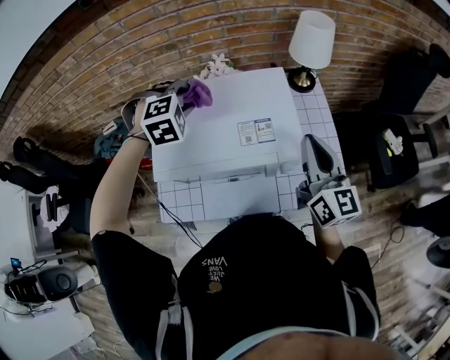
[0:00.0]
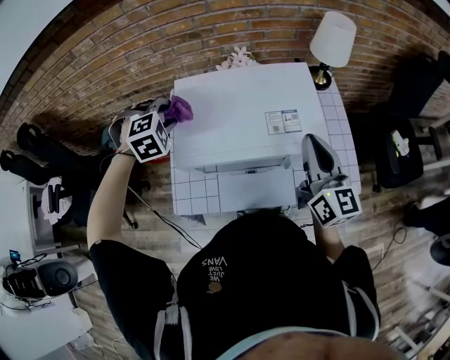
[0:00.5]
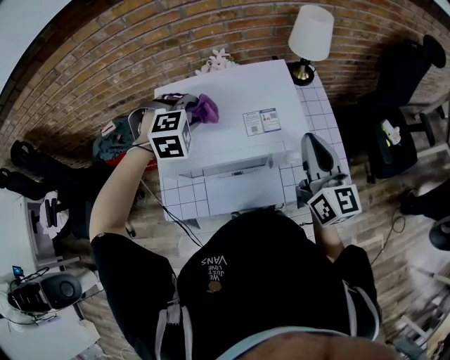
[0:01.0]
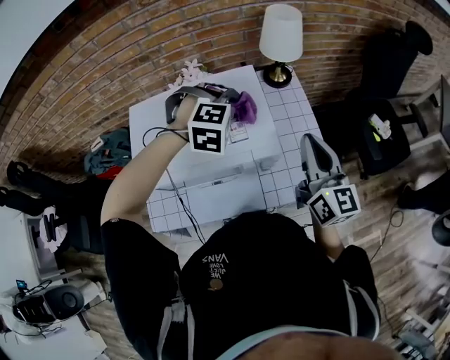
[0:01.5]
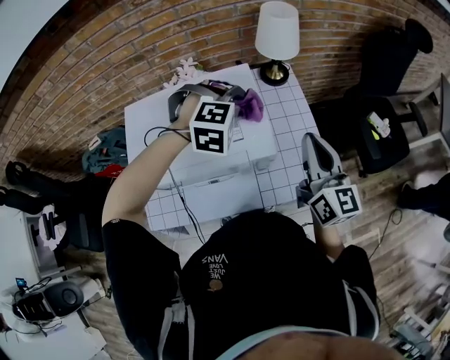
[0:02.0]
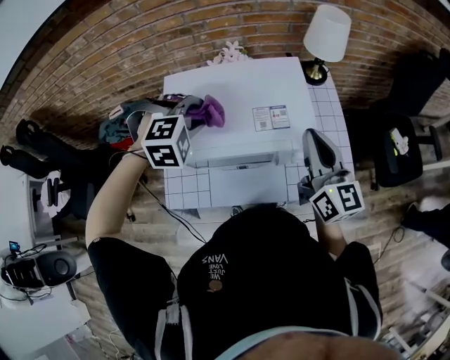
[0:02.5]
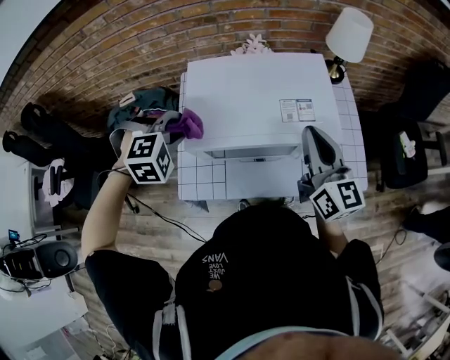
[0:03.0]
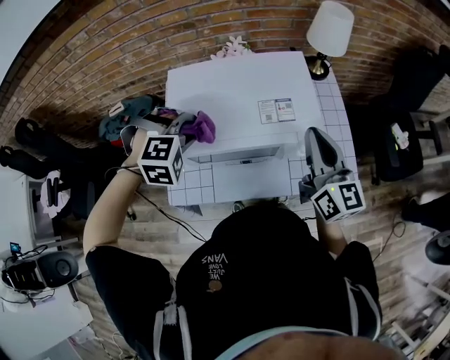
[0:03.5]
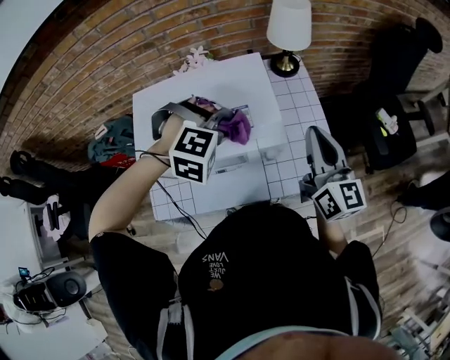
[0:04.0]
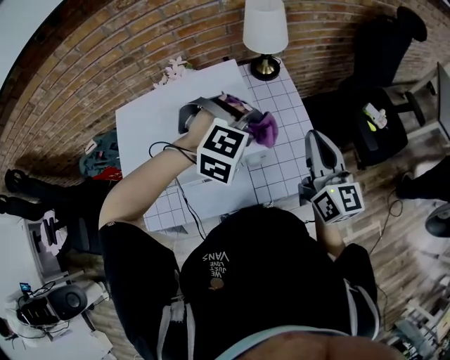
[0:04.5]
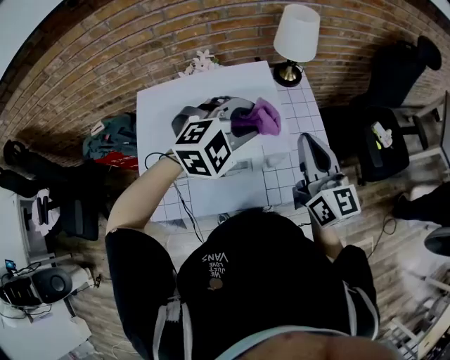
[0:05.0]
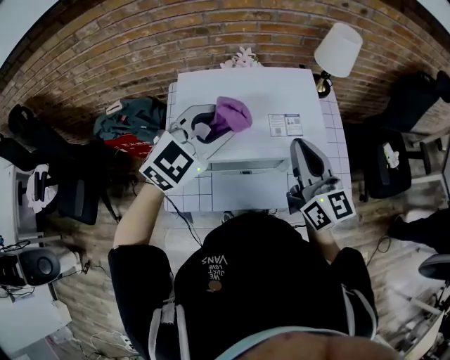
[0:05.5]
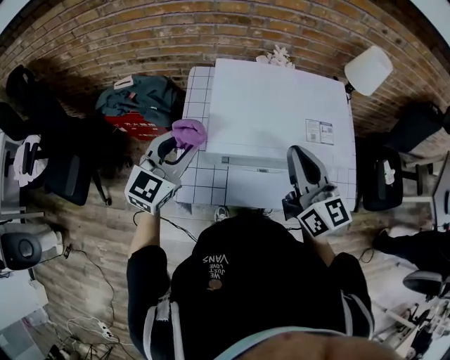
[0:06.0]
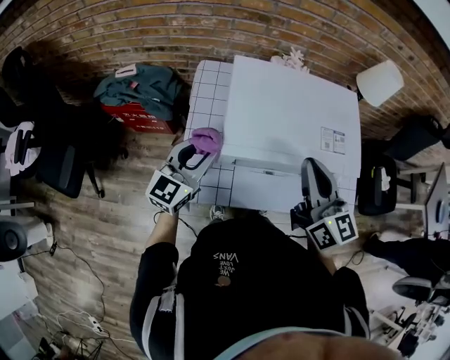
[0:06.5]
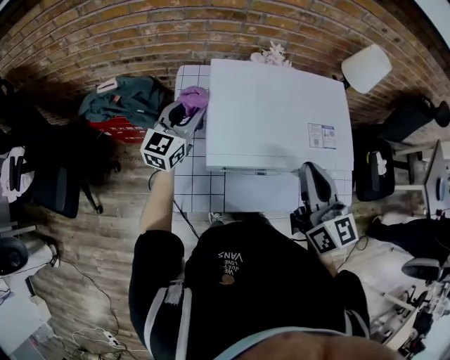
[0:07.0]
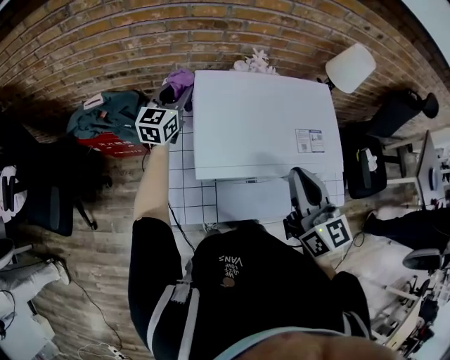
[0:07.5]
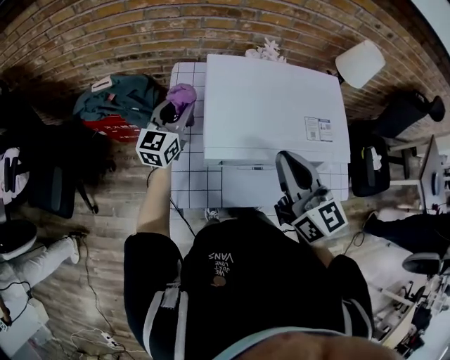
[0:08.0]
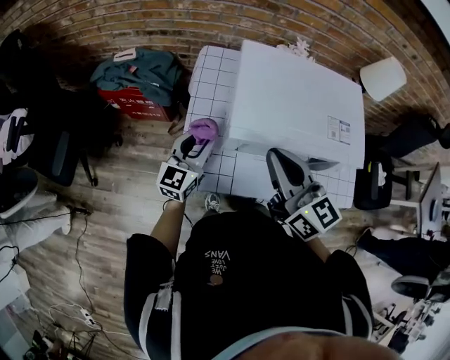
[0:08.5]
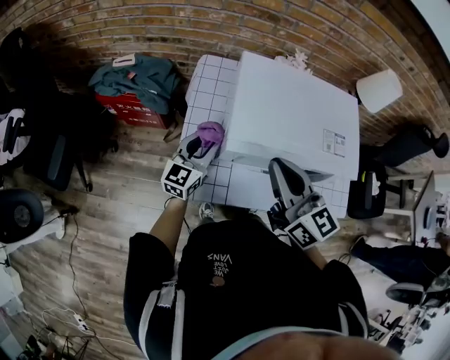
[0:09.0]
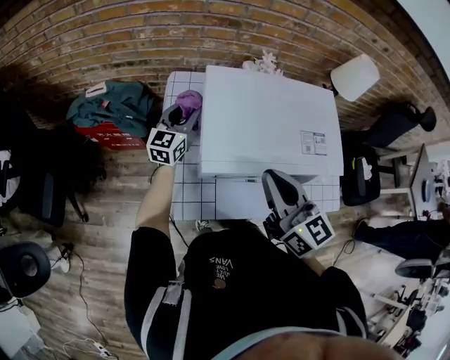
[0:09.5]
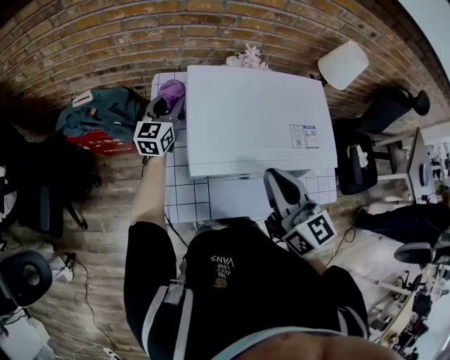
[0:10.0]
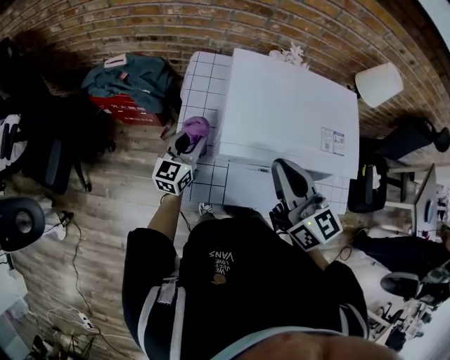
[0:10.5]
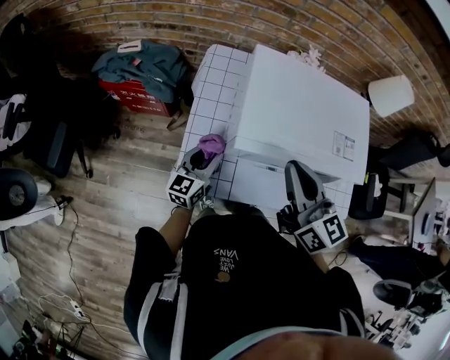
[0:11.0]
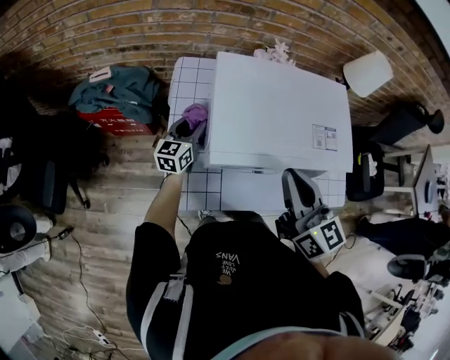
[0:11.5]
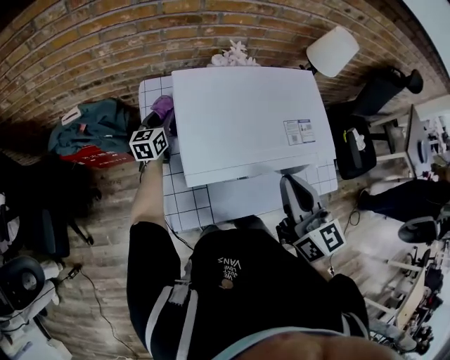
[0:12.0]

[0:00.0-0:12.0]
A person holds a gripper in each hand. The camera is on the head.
0:00.0 to 0:02.0: The right gripper goes approximately 10 cm to the right. Meanwhile the left gripper goes roughly 25 cm to the right, and changes its angle by approximately 30 degrees.
0:02.0 to 0:04.0: The left gripper is displaced backward by about 10 cm, and goes to the left and returns, roughly 35 cm each way. Meanwhile the right gripper travels to the left and back again, roughly 20 cm each way.
0:04.0 to 0:06.0: The right gripper ends up roughly 30 cm from where it was, and swivels some 20 degrees. The left gripper travels upward and back again, some 10 cm each way, and tilts its fingers some 50 degrees upward.
0:06.0 to 0:08.0: The left gripper is displaced forward and downward by about 15 cm.
0:08.0 to 0:10.0: The left gripper shifts some 10 cm forward. Meanwhile the right gripper moves roughly 5 cm to the left and comes back.
0:10.0 to 0:12.0: The left gripper is displaced downward by approximately 10 cm, and goes backward and returns, approximately 25 cm each way.

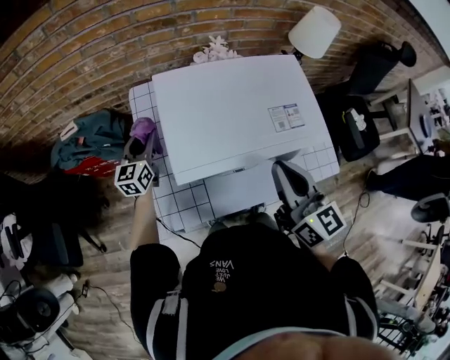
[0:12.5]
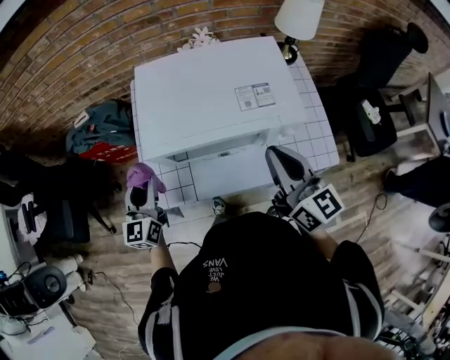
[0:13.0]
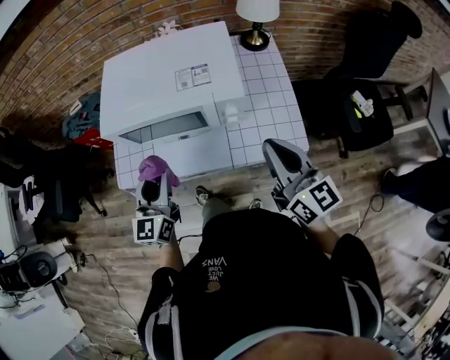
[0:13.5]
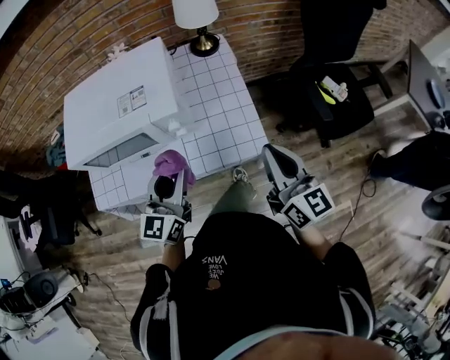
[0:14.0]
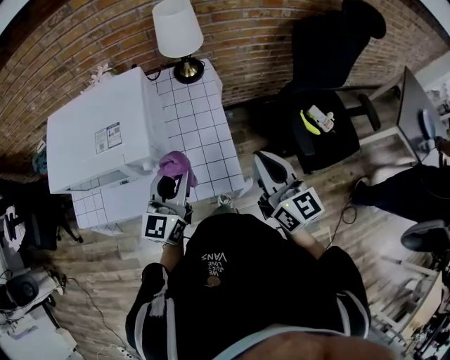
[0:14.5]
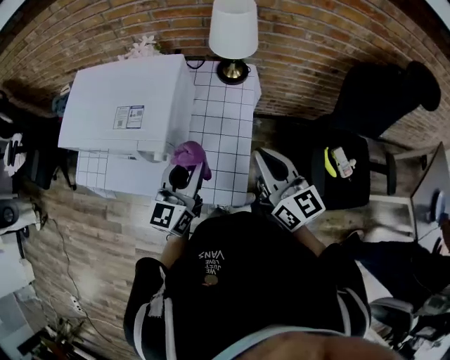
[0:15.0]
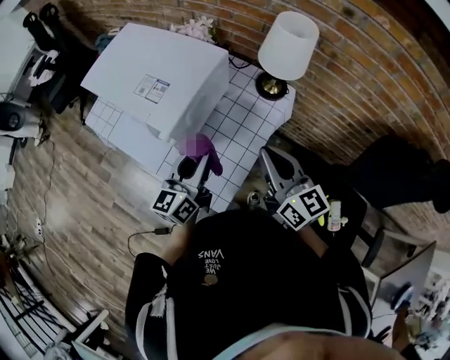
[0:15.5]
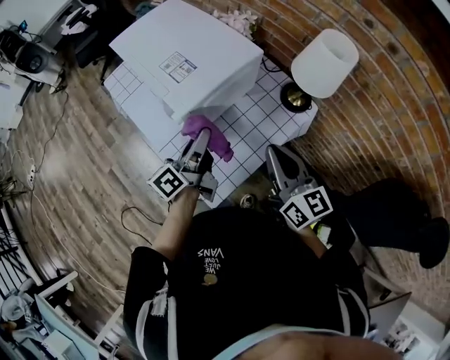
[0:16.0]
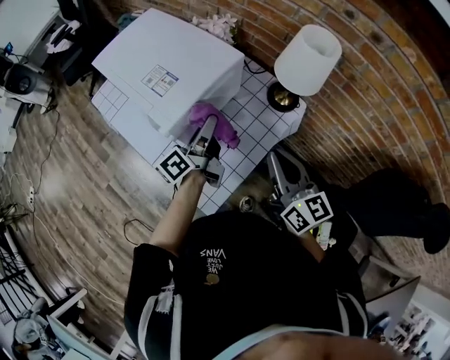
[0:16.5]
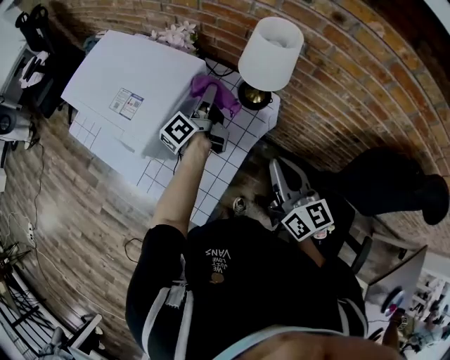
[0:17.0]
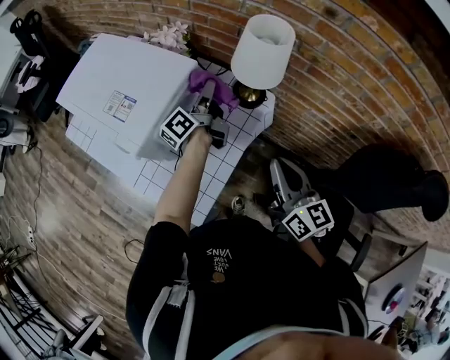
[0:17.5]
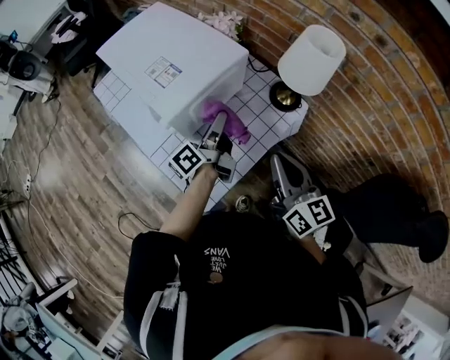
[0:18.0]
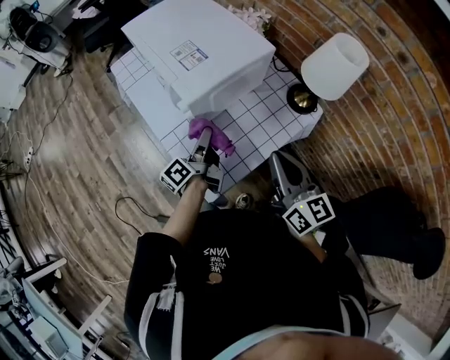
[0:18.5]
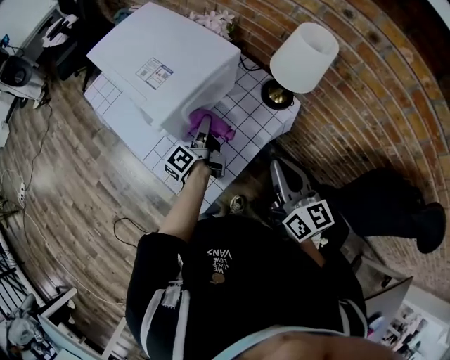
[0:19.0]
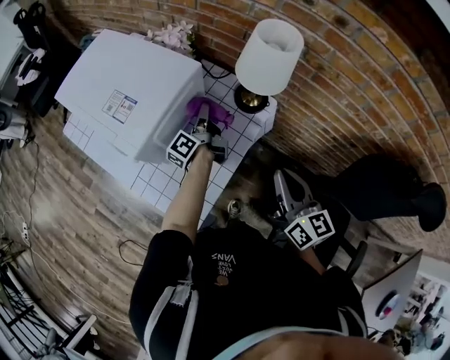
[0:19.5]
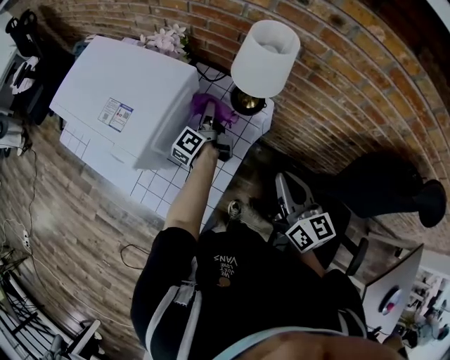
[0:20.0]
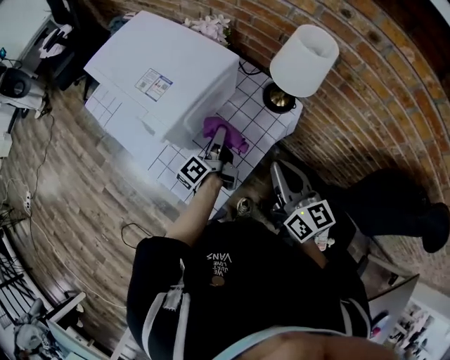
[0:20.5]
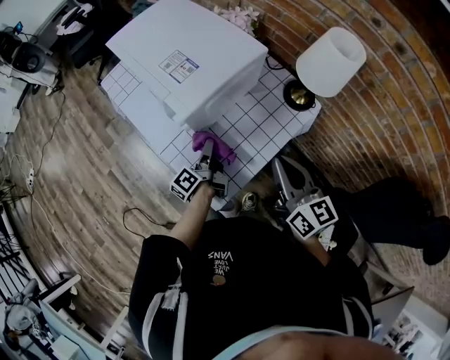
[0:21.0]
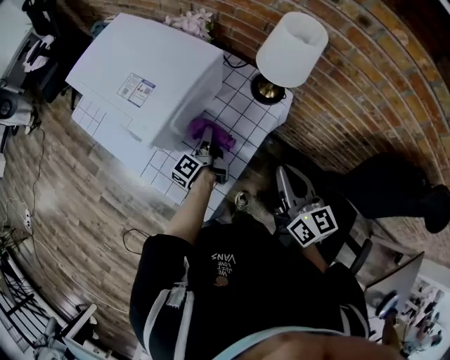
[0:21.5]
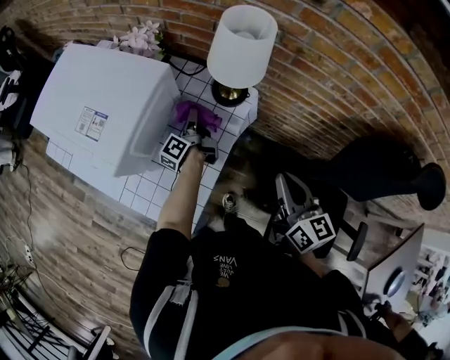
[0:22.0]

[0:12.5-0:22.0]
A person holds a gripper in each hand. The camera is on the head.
0:12.5 to 0:14.5: The pair of grippers is taken to the right, some 50 cm.
0:14.5 to 0:16.5: The right gripper changes place by about 20 cm, and turns by some 50 degrees; the left gripper changes place by approximately 15 cm, and changes its angle by about 70 degrees.
0:16.5 to 0:18.0: The left gripper travels forward and back again, about 15 cm each way; the right gripper travels to the right and back again, roughly 10 cm each way.
0:18.0 to 0:20.0: The left gripper is displaced forward, to the right and downward by about 15 cm. Meanwhile the right gripper goes approximately 10 cm to the right.
0:20.0 to 0:22.0: The right gripper moves about 15 cm to the left and comes back. Meanwhile the left gripper heads downward, covering approximately 5 cm, and goes to the left and returns, some 20 cm each way.

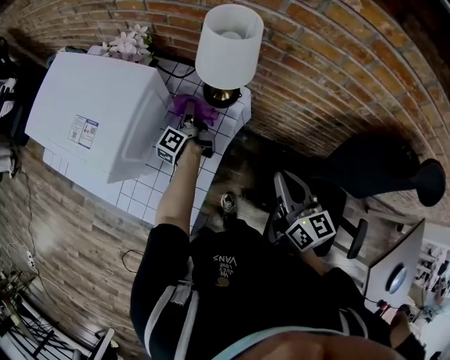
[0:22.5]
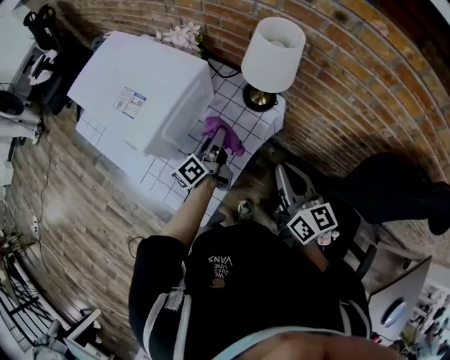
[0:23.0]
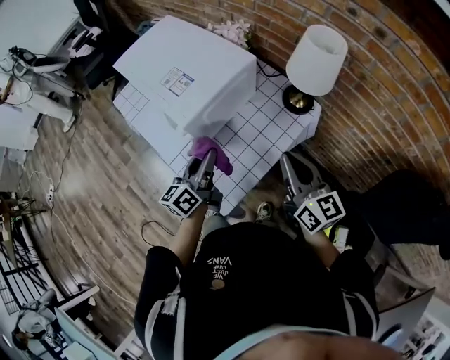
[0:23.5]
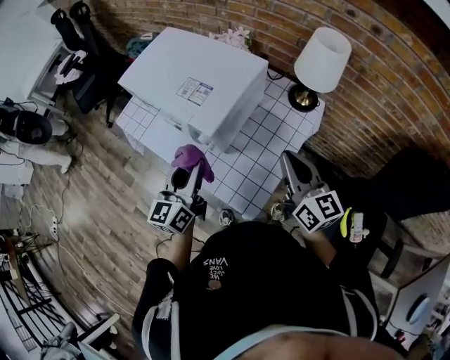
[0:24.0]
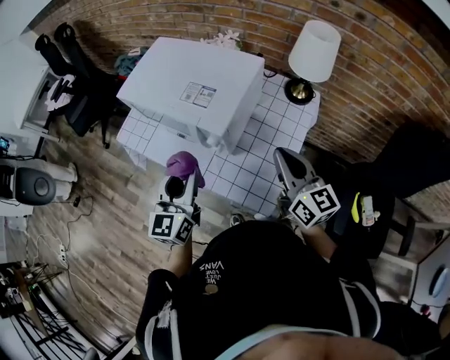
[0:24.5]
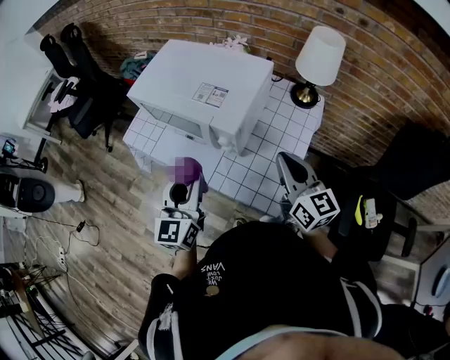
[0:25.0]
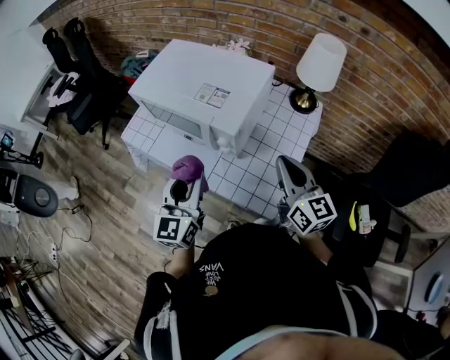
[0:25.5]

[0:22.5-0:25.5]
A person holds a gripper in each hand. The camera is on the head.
0:22.5 to 0:24.0: The right gripper goes roughly 25 cm to the left, while the left gripper travels to the left, backward and upward by about 40 cm, and rolls clockwise, seen from behind, by some 60 degrees.
0:24.0 to 0:25.5: Both grippers move to the left, approximately 5 cm.

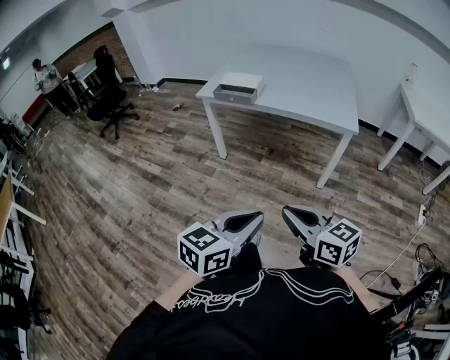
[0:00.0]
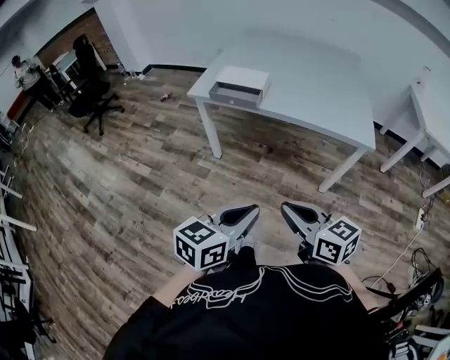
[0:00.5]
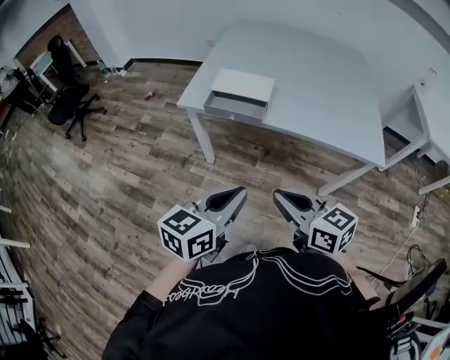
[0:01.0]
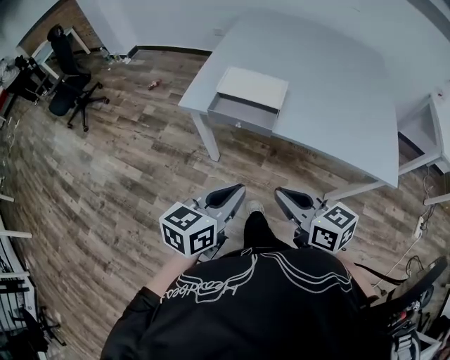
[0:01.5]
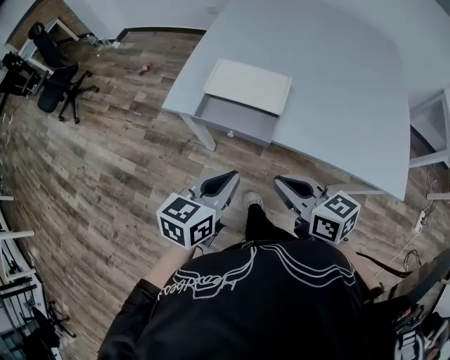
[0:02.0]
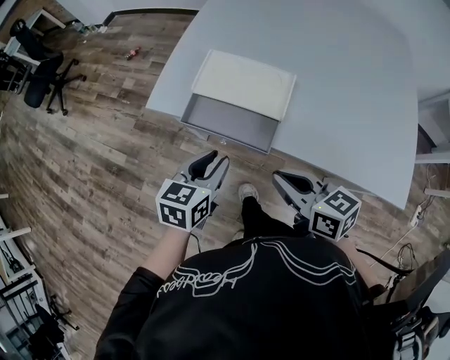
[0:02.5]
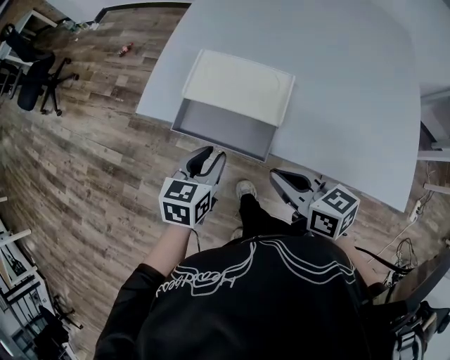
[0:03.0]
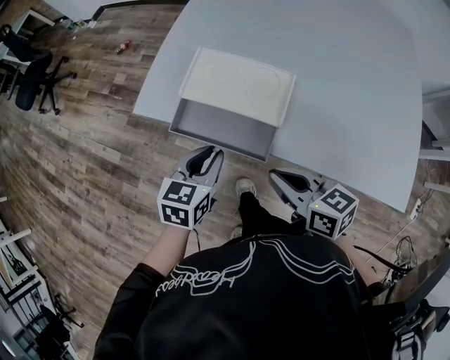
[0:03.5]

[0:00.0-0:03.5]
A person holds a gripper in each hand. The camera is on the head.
0:00.0 to 0:02.0: Both grippers are carried forward, roughly 60 cm.
0:02.0 to 0:03.5: The right gripper is displaced forward and downward by about 10 cm, while the left gripper goes approximately 15 cm forward and downward.
